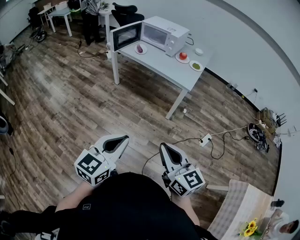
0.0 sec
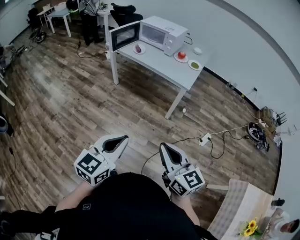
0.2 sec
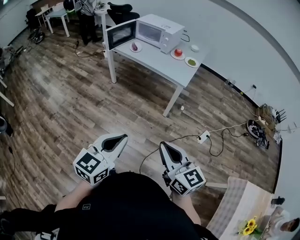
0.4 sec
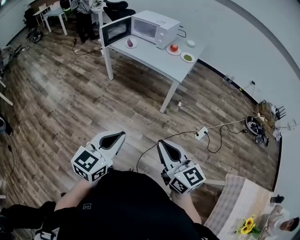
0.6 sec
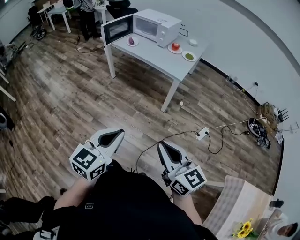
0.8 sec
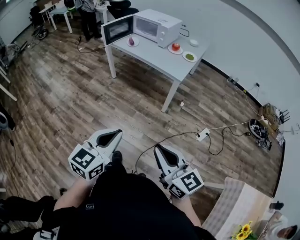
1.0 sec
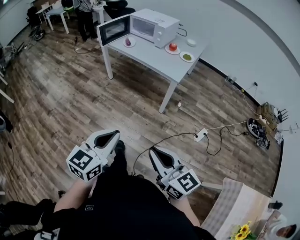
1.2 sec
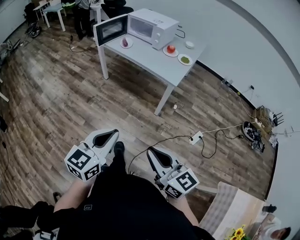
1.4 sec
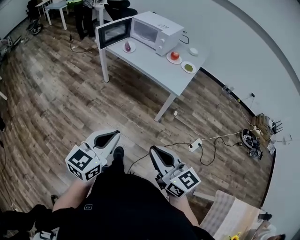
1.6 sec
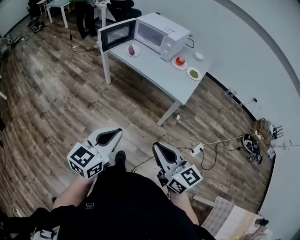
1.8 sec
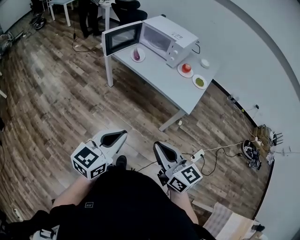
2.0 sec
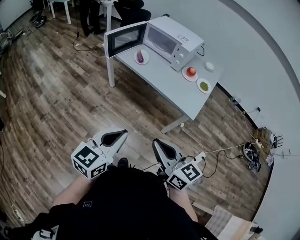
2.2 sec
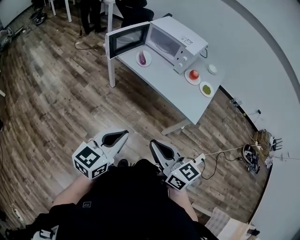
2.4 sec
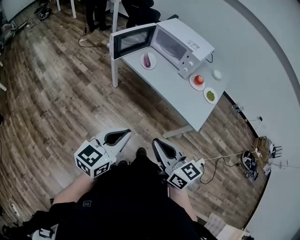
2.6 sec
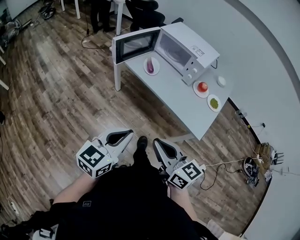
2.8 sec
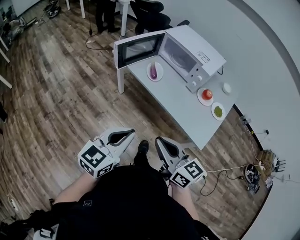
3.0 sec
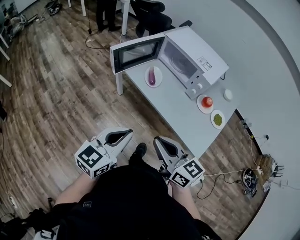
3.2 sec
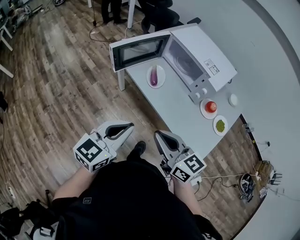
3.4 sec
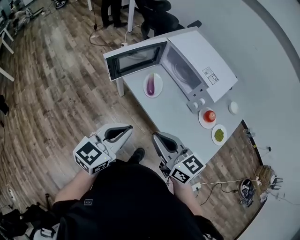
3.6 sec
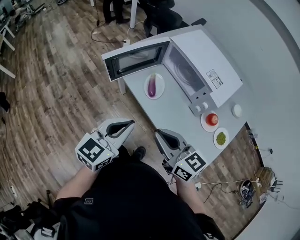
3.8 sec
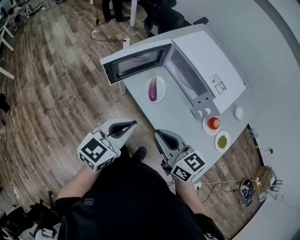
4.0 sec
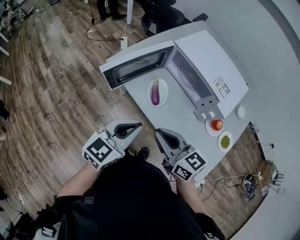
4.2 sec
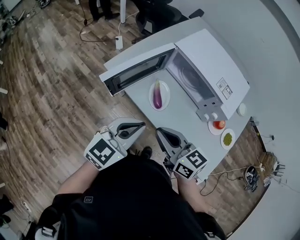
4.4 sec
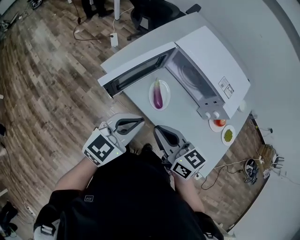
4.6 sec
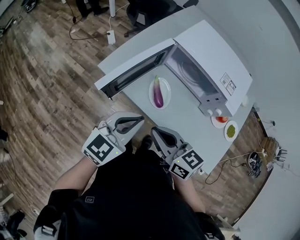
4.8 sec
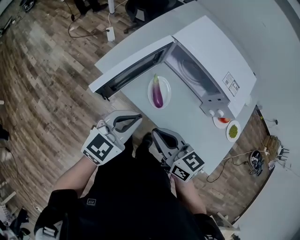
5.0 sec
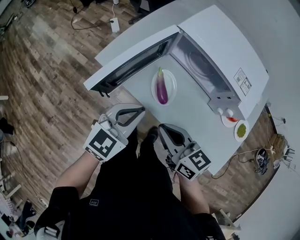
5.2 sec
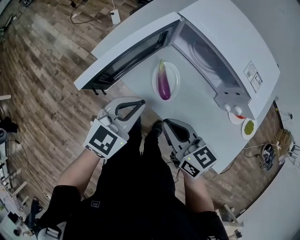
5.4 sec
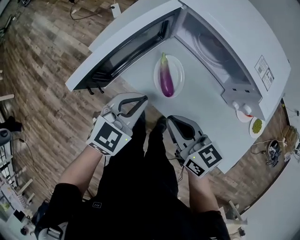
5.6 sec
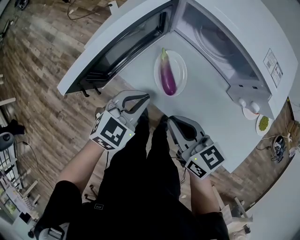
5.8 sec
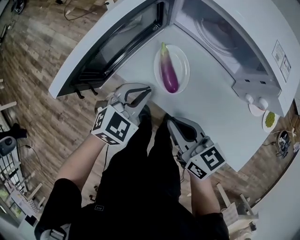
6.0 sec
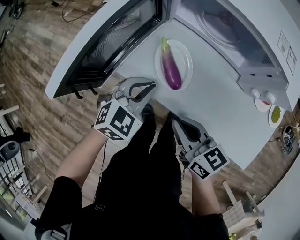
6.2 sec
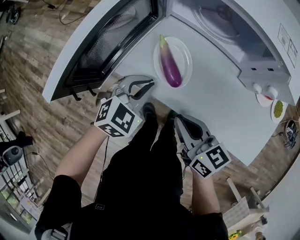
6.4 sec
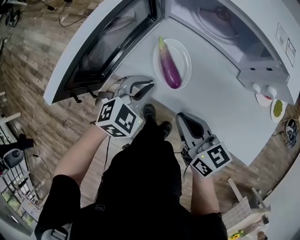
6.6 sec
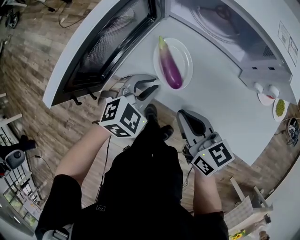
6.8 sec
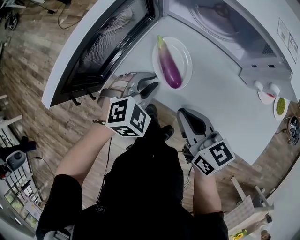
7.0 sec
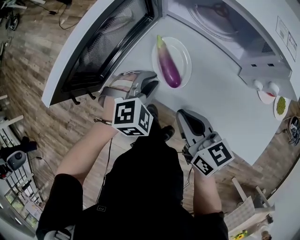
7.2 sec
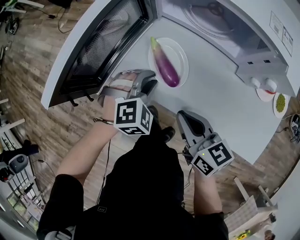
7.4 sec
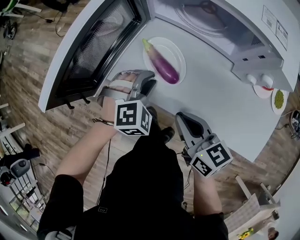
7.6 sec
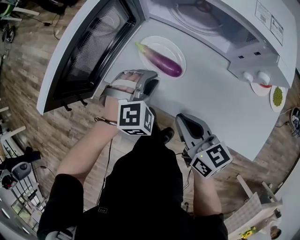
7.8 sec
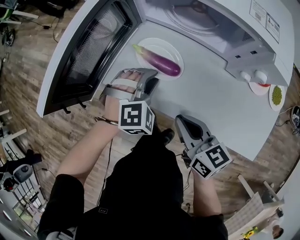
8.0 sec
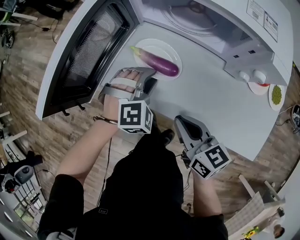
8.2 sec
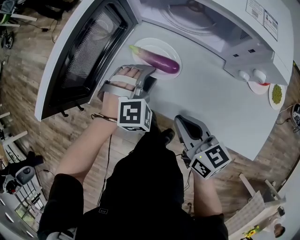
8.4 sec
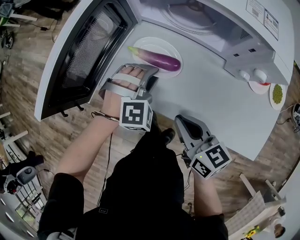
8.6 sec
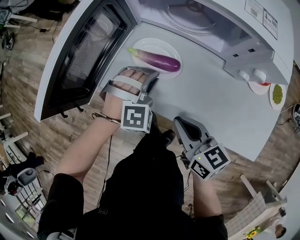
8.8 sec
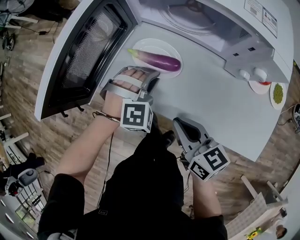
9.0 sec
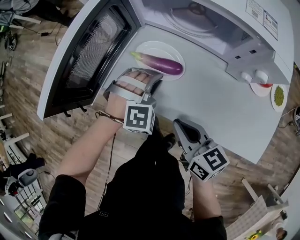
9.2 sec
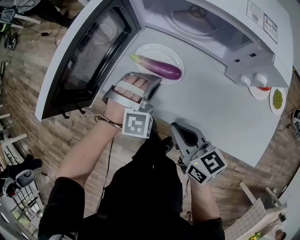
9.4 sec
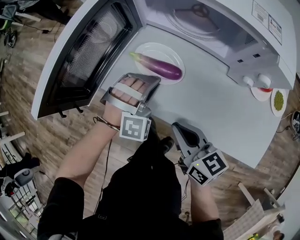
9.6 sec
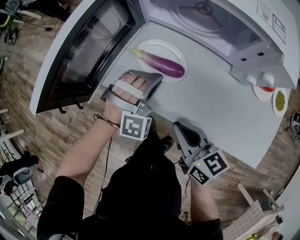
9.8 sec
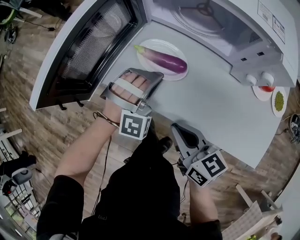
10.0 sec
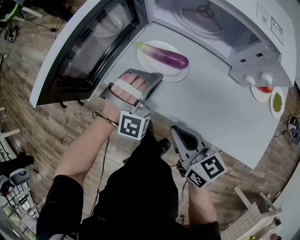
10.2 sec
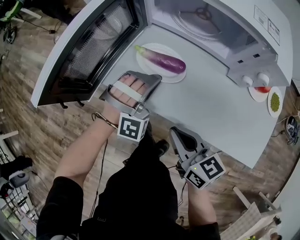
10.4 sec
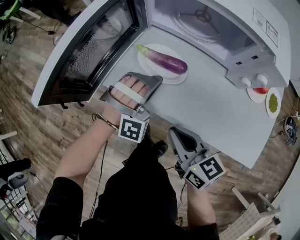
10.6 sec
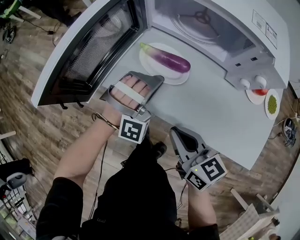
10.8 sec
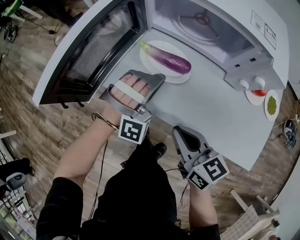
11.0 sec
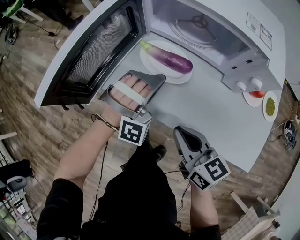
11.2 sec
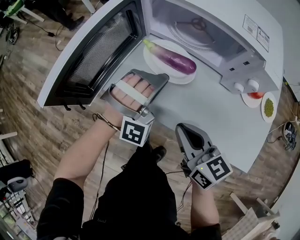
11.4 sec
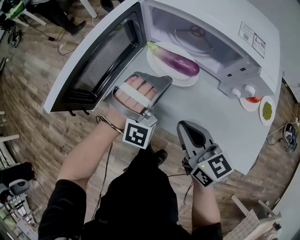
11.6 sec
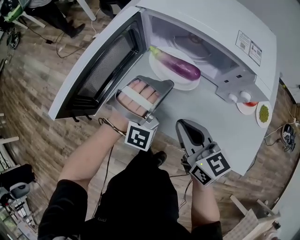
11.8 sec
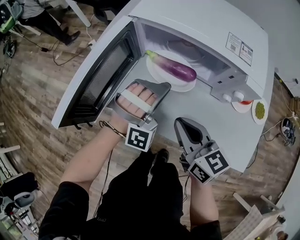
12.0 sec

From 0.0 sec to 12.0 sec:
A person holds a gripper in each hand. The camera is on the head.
From 0.0 sec to 1.6 sec: The grippers both shift forward and to the right by some 10 cm.
From 1.6 sec to 3.0 sec: Both grippers move forward, some 40 cm.
From 3.0 sec to 4.4 sec: Both grippers travel together forward, about 30 cm.
From 4.4 sec to 6.0 sec: The right gripper heads downward, covering roughly 15 cm. The left gripper travels downward and forward by roughly 25 cm, and changes its angle by about 30 degrees.
From 6.0 sec to 7.6 sec: The left gripper travels downward by about 5 cm, and swivels roughly 40 degrees.
From 9.0 sec to 10.4 sec: The left gripper rotates about 30 degrees.
From 10.4 sec to 12.0 sec: The right gripper is displaced upward and forward by approximately 15 cm; the left gripper goes approximately 10 cm upward and to the right.

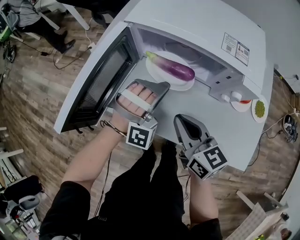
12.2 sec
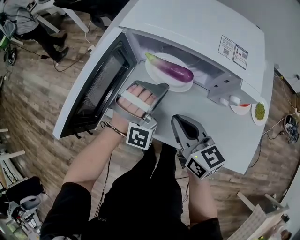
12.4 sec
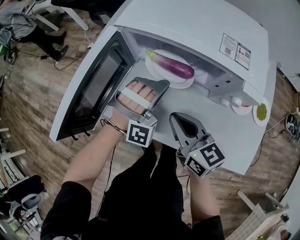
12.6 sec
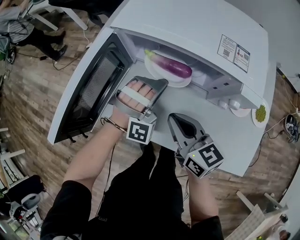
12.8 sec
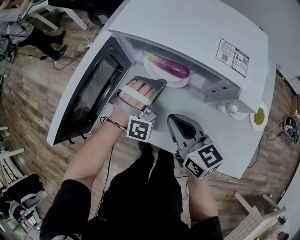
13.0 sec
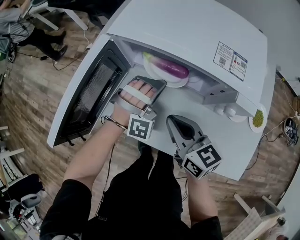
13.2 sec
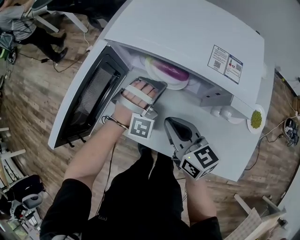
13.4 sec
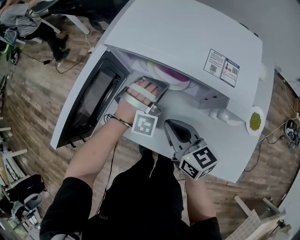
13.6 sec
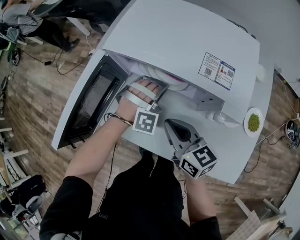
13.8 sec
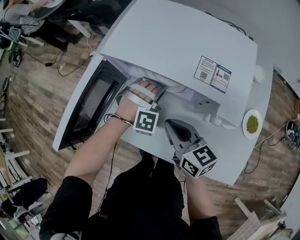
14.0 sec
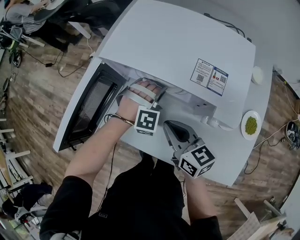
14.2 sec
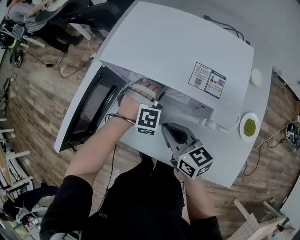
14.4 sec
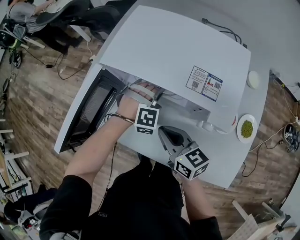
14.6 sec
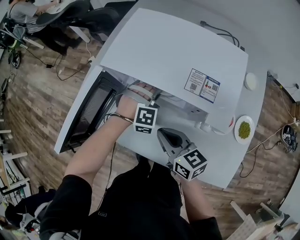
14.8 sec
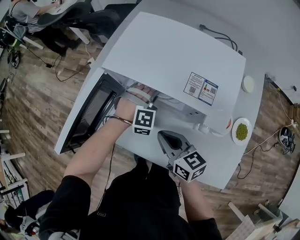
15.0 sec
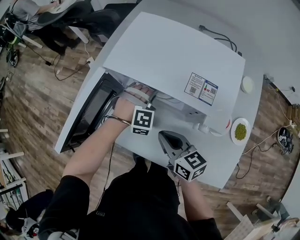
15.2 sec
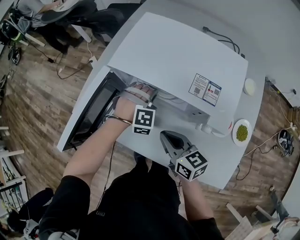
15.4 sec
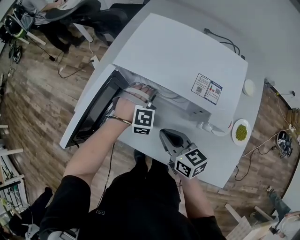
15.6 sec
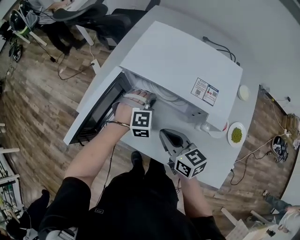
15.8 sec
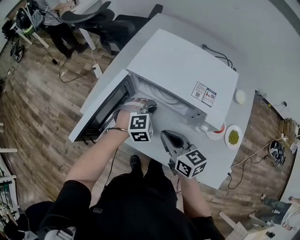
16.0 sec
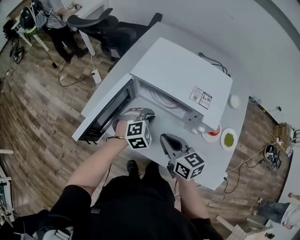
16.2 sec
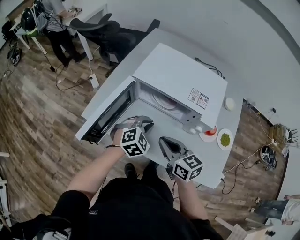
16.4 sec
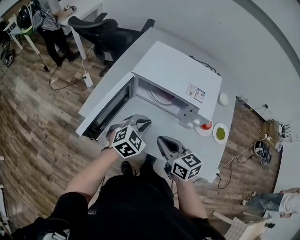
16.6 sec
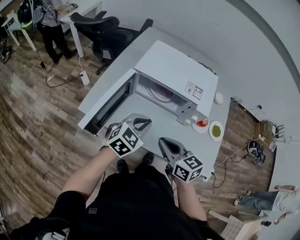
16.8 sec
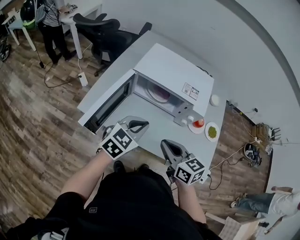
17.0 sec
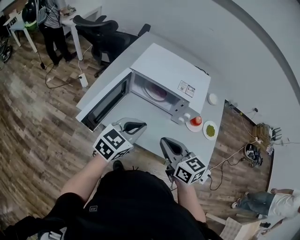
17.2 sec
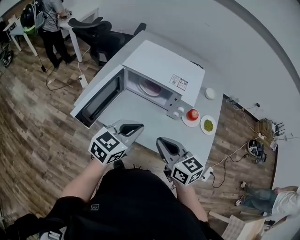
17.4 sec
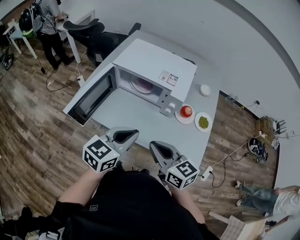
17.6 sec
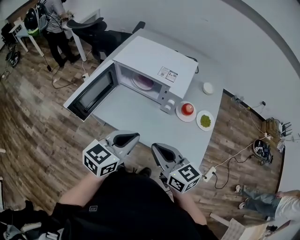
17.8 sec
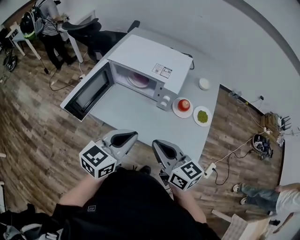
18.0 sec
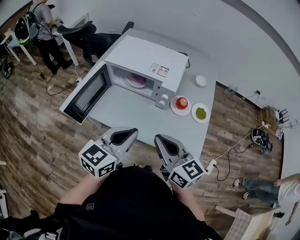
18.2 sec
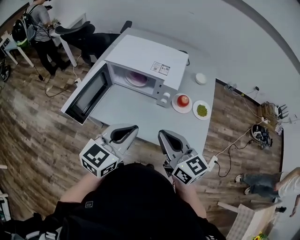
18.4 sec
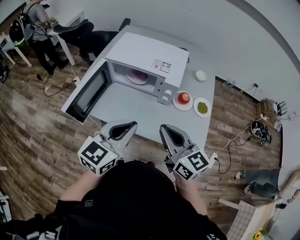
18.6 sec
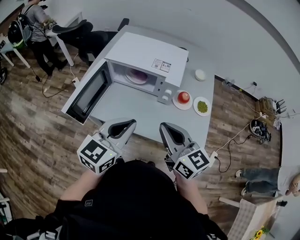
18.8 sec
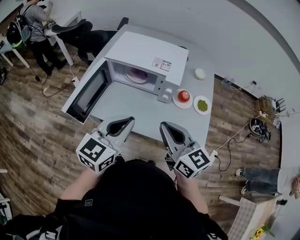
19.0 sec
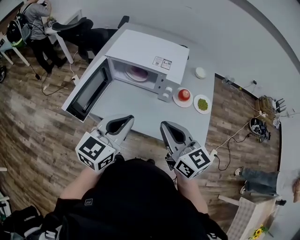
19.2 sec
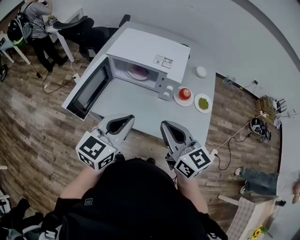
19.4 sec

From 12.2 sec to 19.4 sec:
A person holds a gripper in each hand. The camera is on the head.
From 12.2 sec to 13.6 sec: The right gripper moves roughly 5 cm. The left gripper heads forward, to the right and downward, covering roughly 10 cm.
From 13.6 sec to 15.0 sec: The left gripper rotates approximately 20 degrees.
From 15.0 sec to 16.6 sec: The left gripper goes about 25 cm upward, backward and to the left, and rolls counterclockwise, seen from behind, by approximately 50 degrees. Meanwhile the right gripper shifts about 15 cm upward, backward and to the left.
From 16.6 sec to 18.0 sec: The left gripper shifts roughly 25 cm backward, upward and to the right, and swivels about 40 degrees. Meanwhile the right gripper shifts some 20 cm to the right, backward and upward.
From 18.0 sec to 19.4 sec: The right gripper ends up roughly 5 cm from where it was, while the left gripper moves to the left, approximately 5 cm.

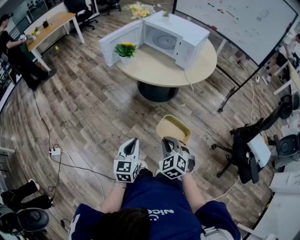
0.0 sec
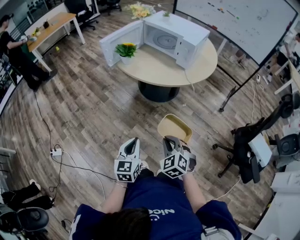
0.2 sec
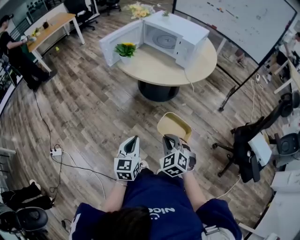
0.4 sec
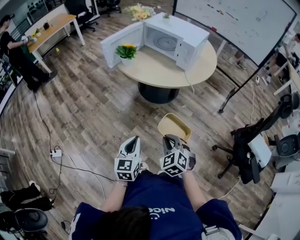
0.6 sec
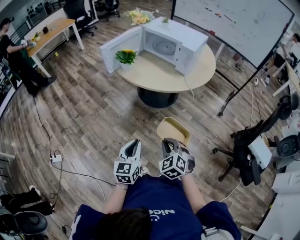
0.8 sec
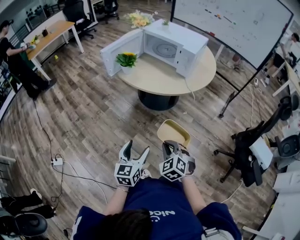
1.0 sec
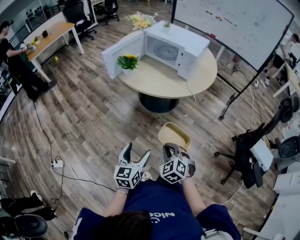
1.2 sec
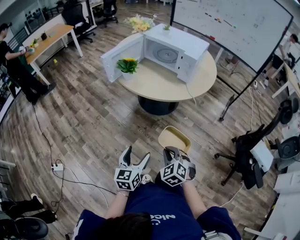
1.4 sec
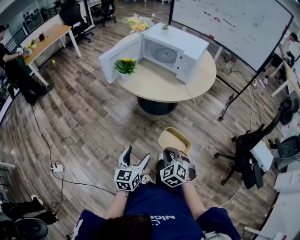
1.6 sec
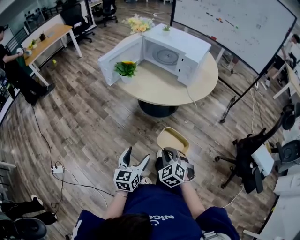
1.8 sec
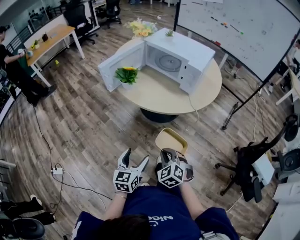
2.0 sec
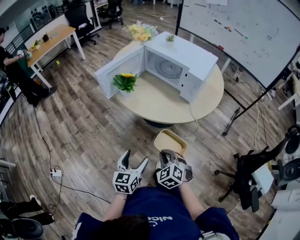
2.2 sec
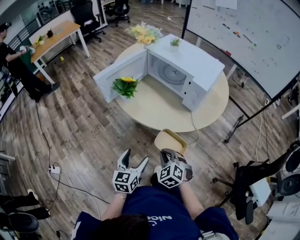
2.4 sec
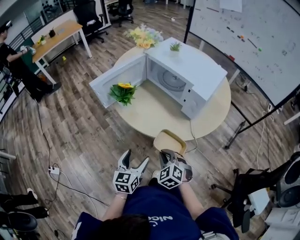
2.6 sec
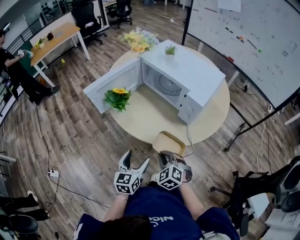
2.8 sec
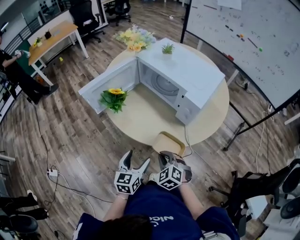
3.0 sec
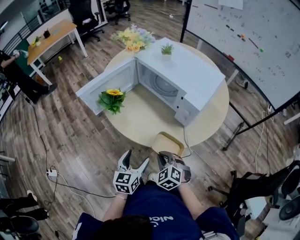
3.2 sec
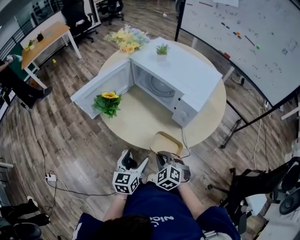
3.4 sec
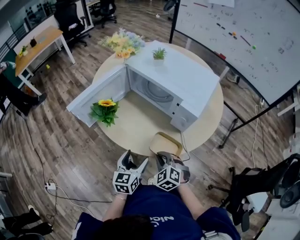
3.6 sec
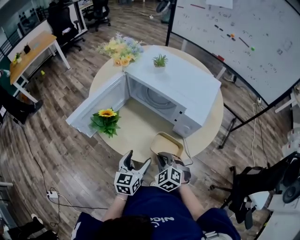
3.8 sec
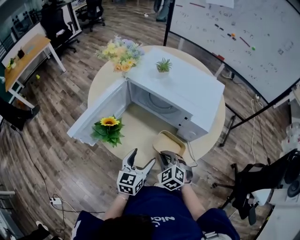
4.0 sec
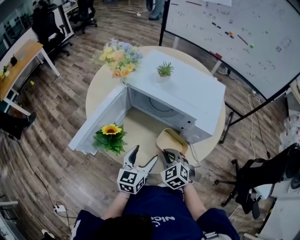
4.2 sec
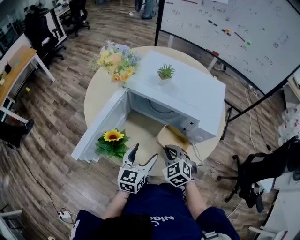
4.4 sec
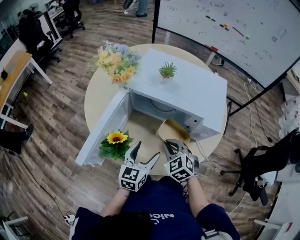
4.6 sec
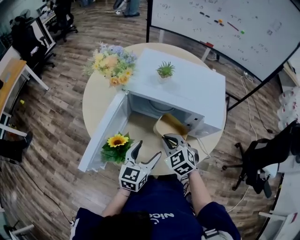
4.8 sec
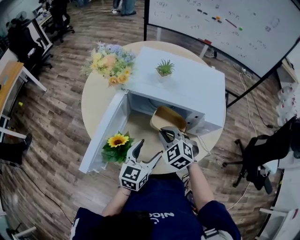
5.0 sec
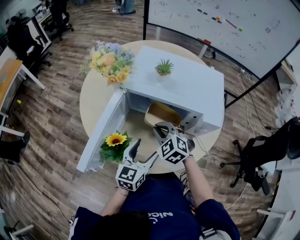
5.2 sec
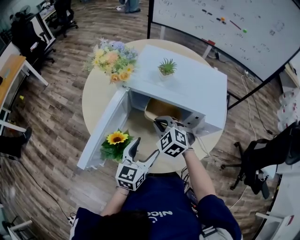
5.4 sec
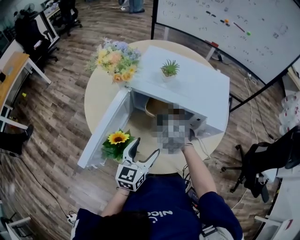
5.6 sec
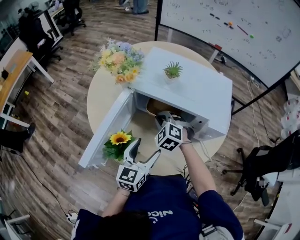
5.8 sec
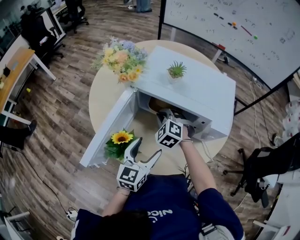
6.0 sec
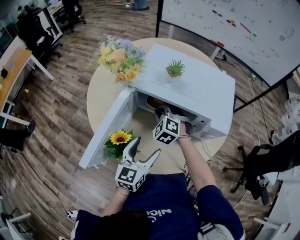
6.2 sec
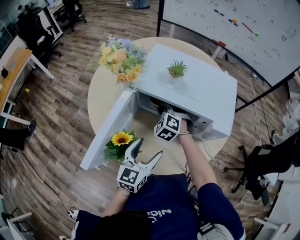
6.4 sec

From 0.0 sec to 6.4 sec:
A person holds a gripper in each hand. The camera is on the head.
From 0.0 sec to 1.6 sec: The right gripper moves some 5 cm, while the left gripper moves approximately 5 cm, and opens up.
From 1.6 sec to 3.2 sec: The grippers both shift forward by some 30 cm.
From 3.2 sec to 4.8 sec: The right gripper changes place by about 25 cm, and rotates roughly 30 degrees. The left gripper ends up roughly 25 cm from where it was, and turns by about 30 degrees.
From 4.8 sec to 6.4 sec: The right gripper goes approximately 15 cm forward, and rotates about 20 degrees.
